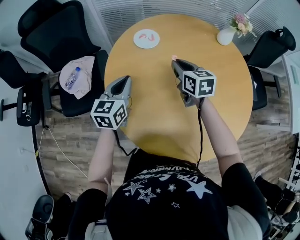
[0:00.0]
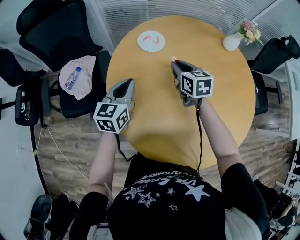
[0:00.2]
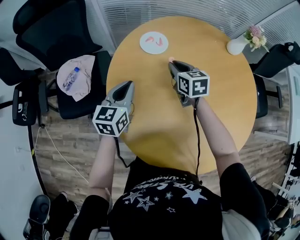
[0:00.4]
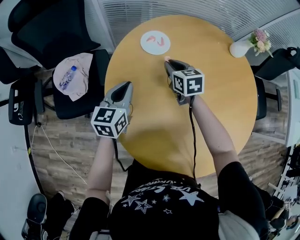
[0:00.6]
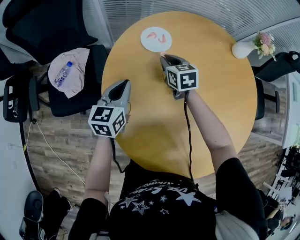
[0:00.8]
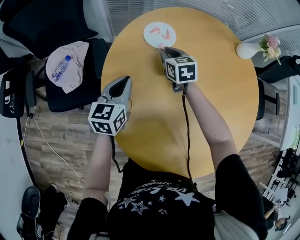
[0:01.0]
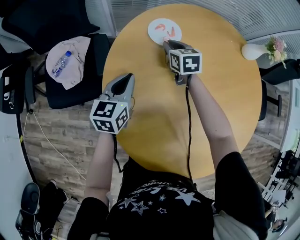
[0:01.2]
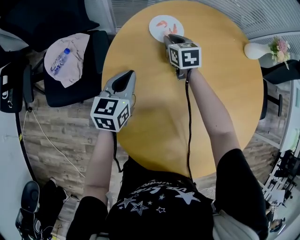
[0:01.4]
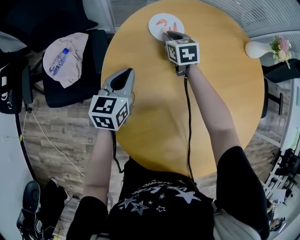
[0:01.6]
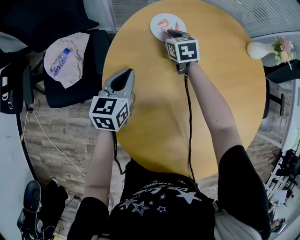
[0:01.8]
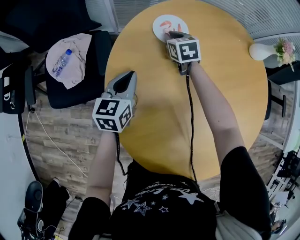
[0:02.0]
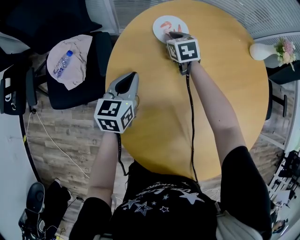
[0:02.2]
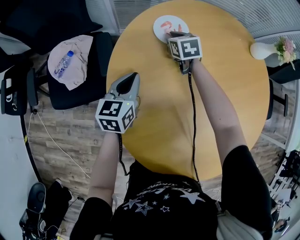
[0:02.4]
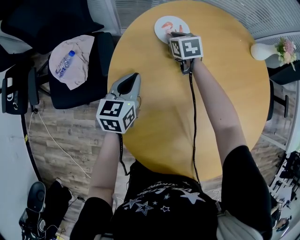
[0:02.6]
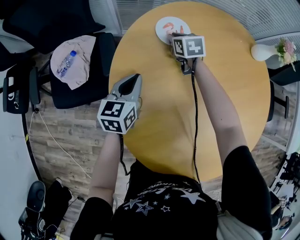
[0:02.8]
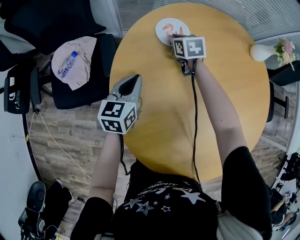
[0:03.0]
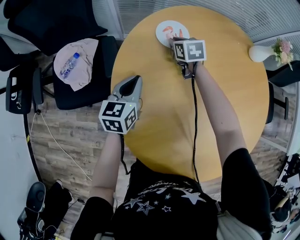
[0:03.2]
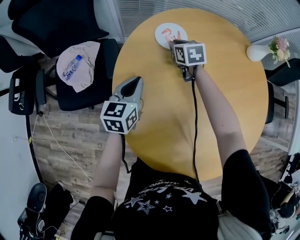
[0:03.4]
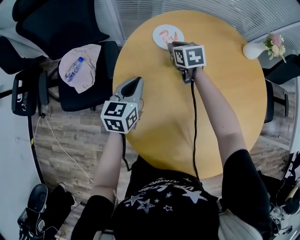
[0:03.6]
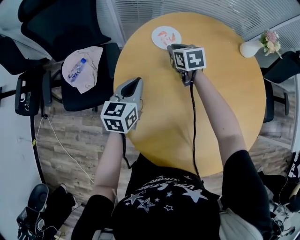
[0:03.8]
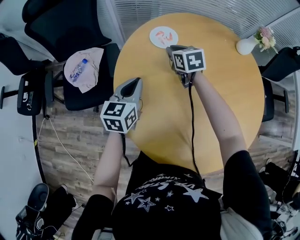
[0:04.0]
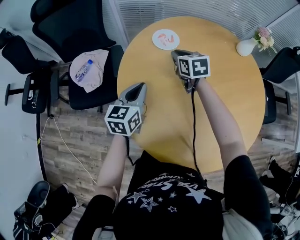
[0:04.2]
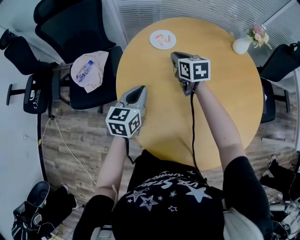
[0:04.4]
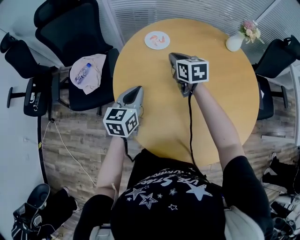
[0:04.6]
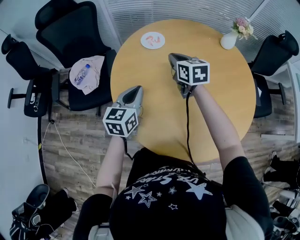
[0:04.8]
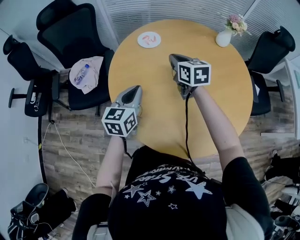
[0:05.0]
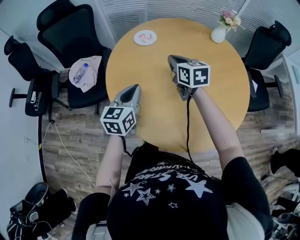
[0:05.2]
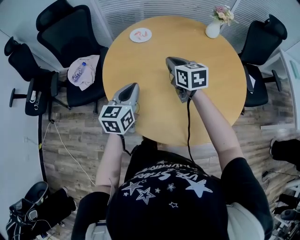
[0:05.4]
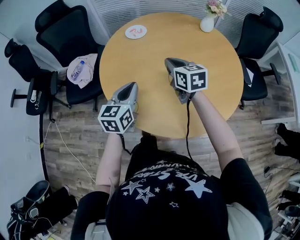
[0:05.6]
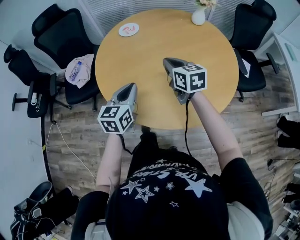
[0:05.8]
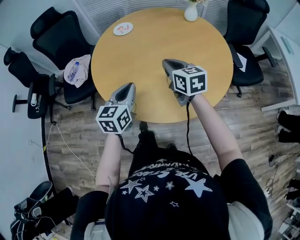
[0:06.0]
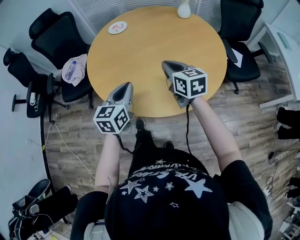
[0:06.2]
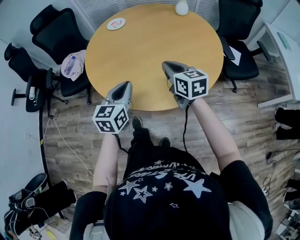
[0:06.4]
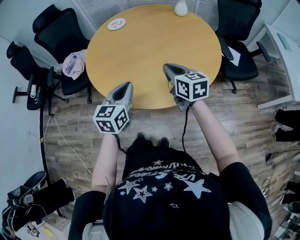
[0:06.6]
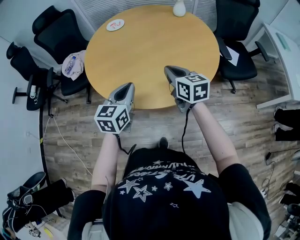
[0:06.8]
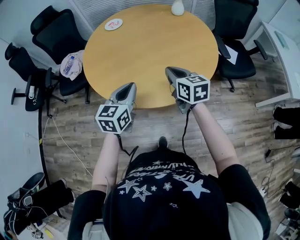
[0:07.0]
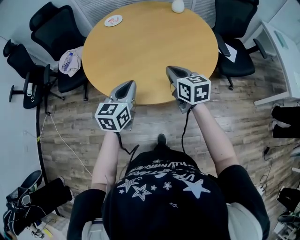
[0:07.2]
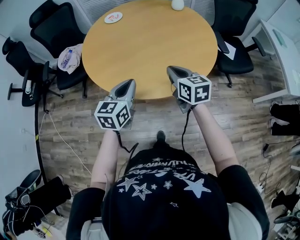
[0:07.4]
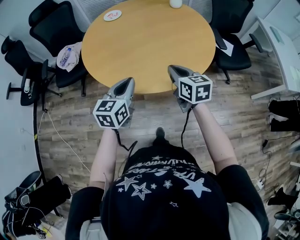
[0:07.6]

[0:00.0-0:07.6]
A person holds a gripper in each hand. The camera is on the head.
0:00.0 to 0:01.6: The right gripper is displaced forward, downward and to the left by roughly 30 cm; the left gripper moves downward and forward, approximately 15 cm.
0:01.6 to 0:03.0: The grippers move only a little.
0:03.0 to 0:04.6: The two grippers go roughly 25 cm backward and upward.
0:04.6 to 0:06.0: The grippers both shift backward and to the right by roughly 30 cm.
0:06.0 to 0:07.6: The grippers both shift backward and to the right by roughly 15 cm.

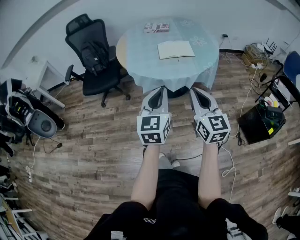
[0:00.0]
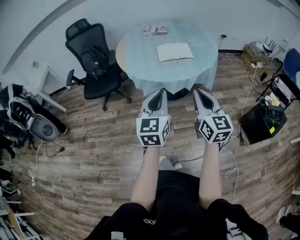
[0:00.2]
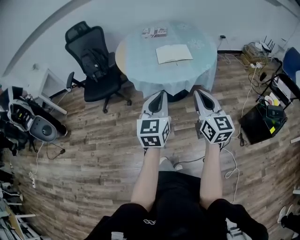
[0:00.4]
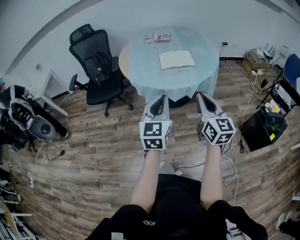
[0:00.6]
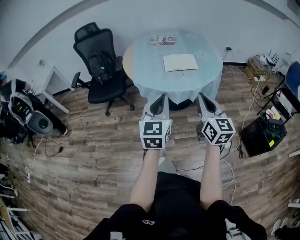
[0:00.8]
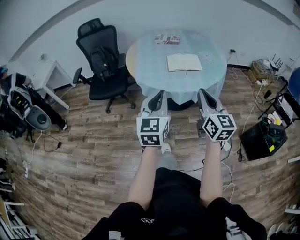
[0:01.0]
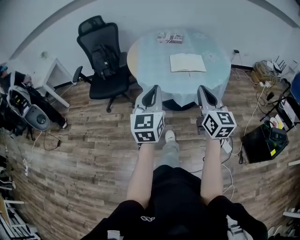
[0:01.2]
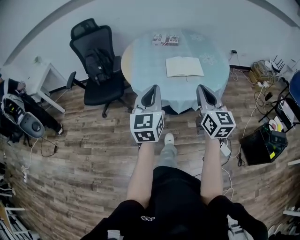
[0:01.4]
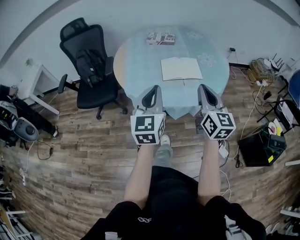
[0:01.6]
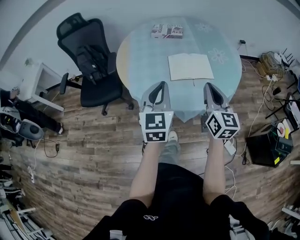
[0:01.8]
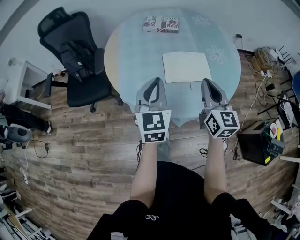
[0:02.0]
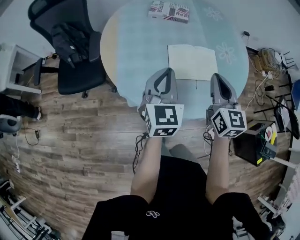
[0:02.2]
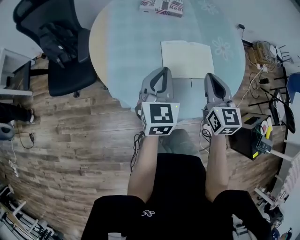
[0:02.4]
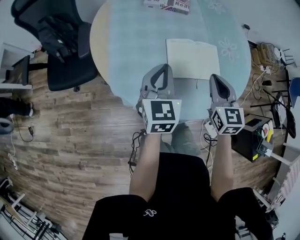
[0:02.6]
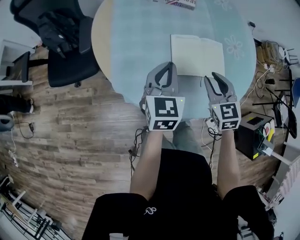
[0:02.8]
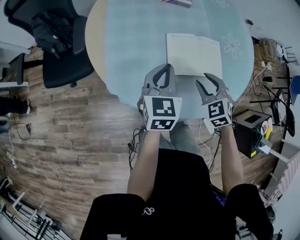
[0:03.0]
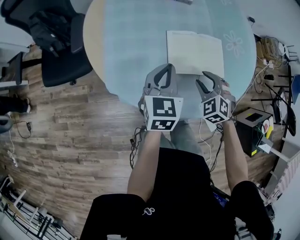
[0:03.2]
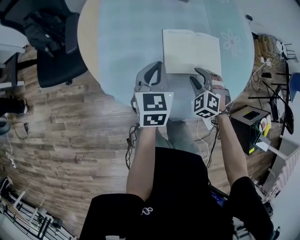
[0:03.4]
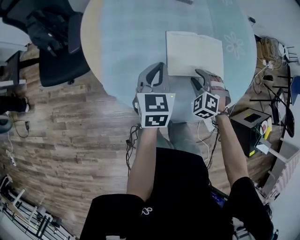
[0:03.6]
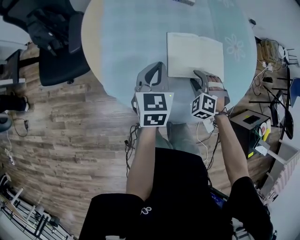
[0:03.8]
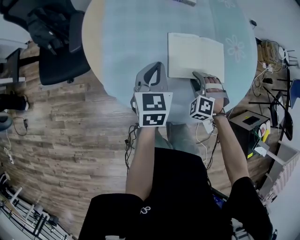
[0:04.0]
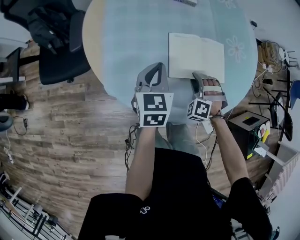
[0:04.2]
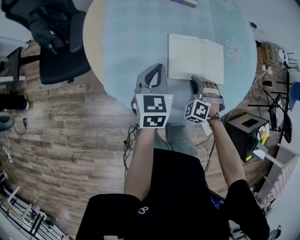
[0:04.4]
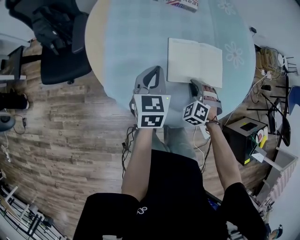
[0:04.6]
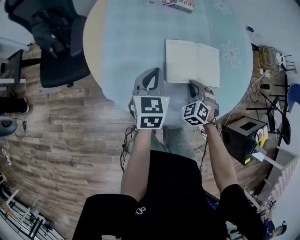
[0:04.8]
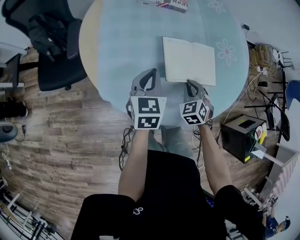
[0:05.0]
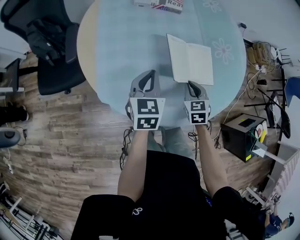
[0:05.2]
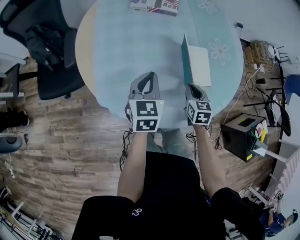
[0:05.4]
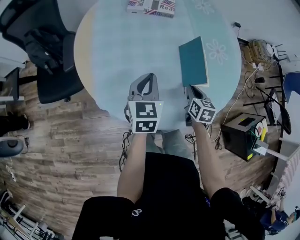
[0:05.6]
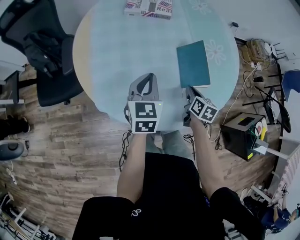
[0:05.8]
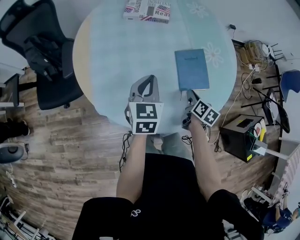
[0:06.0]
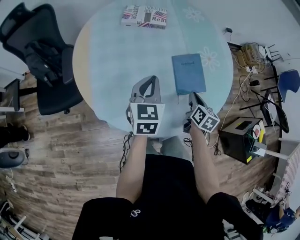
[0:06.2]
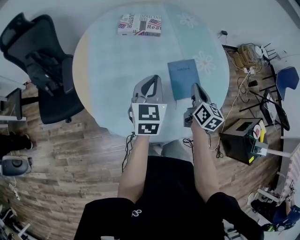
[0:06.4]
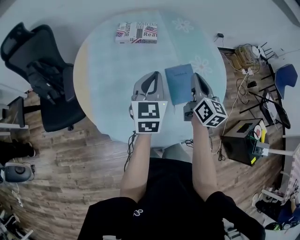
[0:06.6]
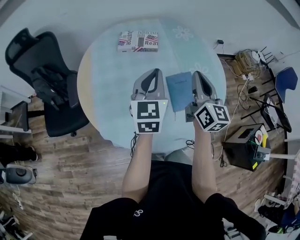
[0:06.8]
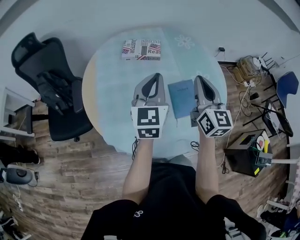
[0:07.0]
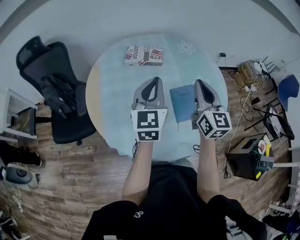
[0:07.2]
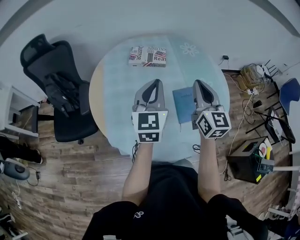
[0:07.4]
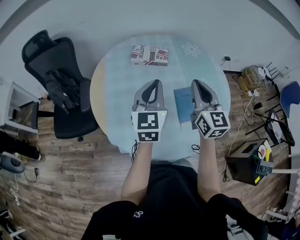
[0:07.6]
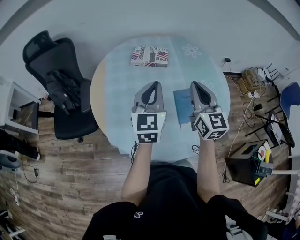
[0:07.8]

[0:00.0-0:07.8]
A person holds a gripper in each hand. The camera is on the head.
0:00.0 to 0:01.6: Both grippers travel together forward, about 25 cm.
0:01.6 to 0:03.2: The grippers both shift forward and downward by some 40 cm. The left gripper turns by some 20 degrees. The right gripper angles its fingers downward, by some 50 degrees, and opens up.
0:03.2 to 0:04.6: The right gripper goes some 5 cm downward, and closes its fingers; the left gripper changes place by some 5 cm.
0:04.6 to 0:06.2: The two grippers go approximately 10 cm to the right and upward. The right gripper rotates around the line of its fingers by roughly 100 degrees, clockwise from behind.
0:06.2 to 0:07.8: The left gripper travels upward by approximately 15 cm. Meanwhile the right gripper moves upward, approximately 30 cm, and angles its fingers upward, by approximately 30 degrees.

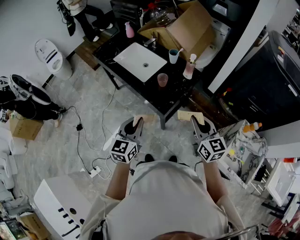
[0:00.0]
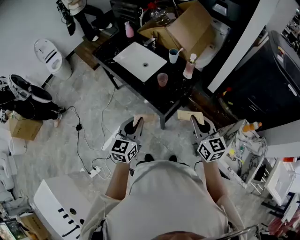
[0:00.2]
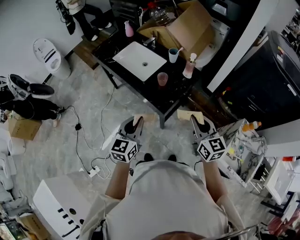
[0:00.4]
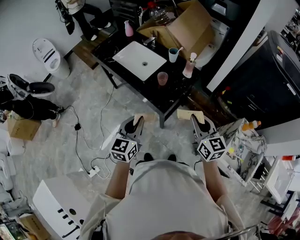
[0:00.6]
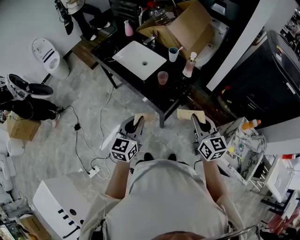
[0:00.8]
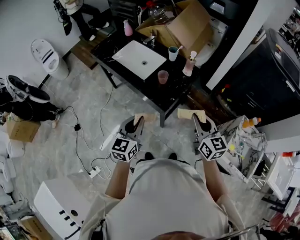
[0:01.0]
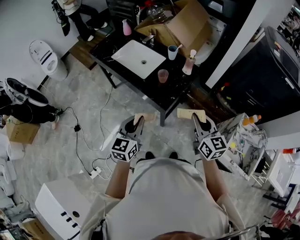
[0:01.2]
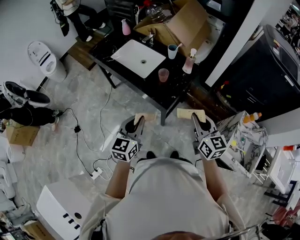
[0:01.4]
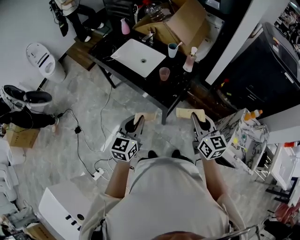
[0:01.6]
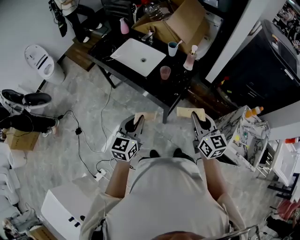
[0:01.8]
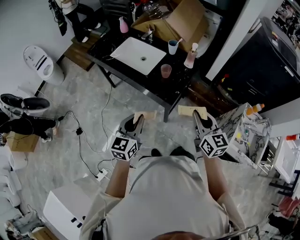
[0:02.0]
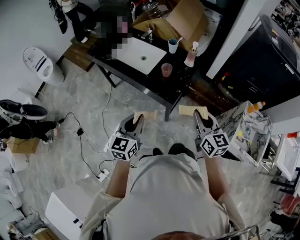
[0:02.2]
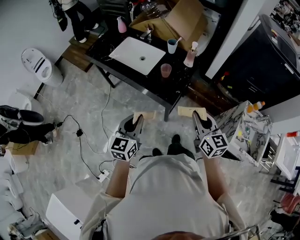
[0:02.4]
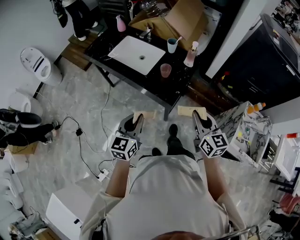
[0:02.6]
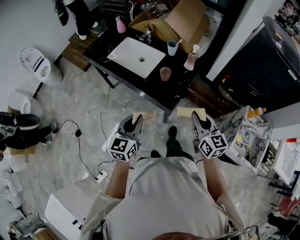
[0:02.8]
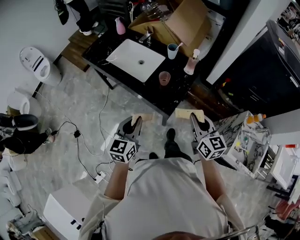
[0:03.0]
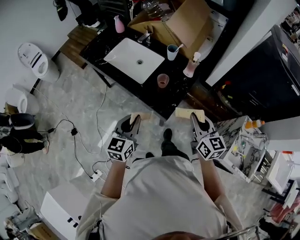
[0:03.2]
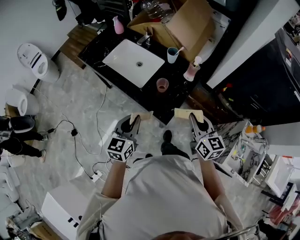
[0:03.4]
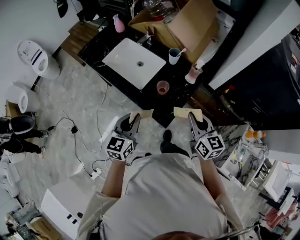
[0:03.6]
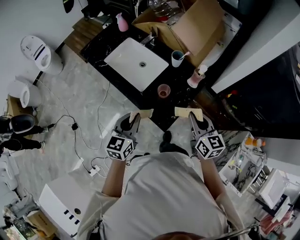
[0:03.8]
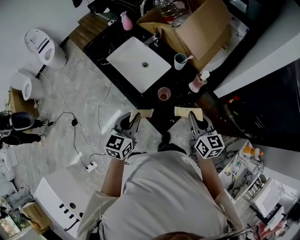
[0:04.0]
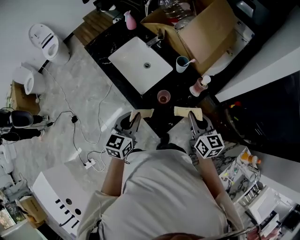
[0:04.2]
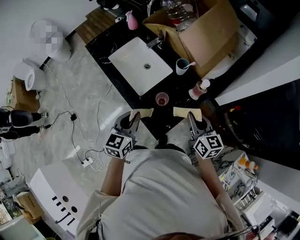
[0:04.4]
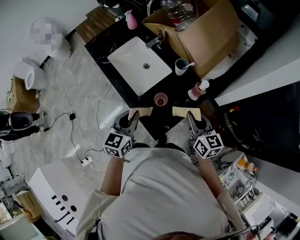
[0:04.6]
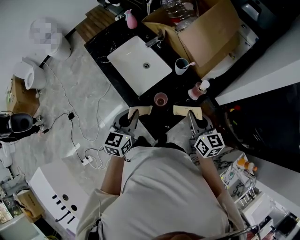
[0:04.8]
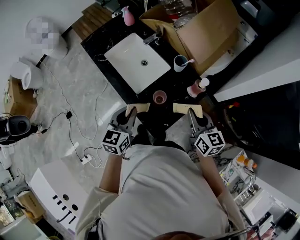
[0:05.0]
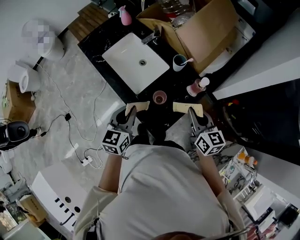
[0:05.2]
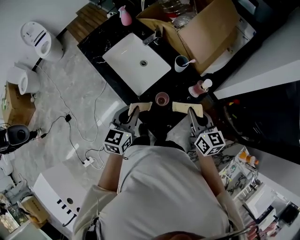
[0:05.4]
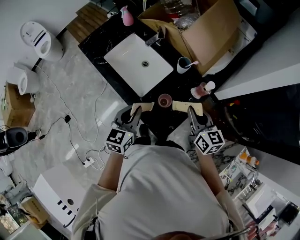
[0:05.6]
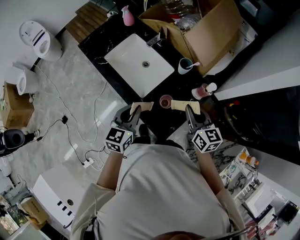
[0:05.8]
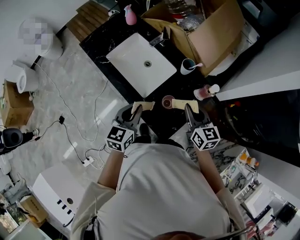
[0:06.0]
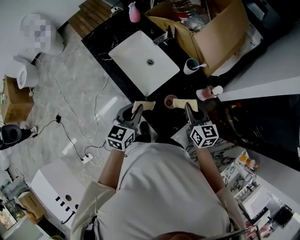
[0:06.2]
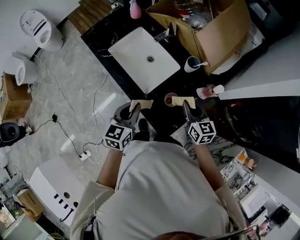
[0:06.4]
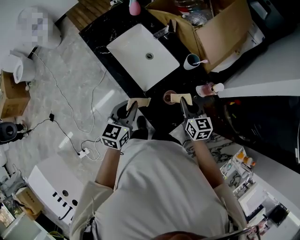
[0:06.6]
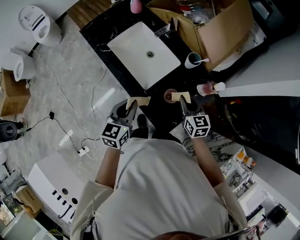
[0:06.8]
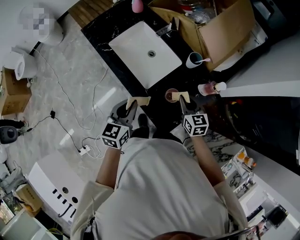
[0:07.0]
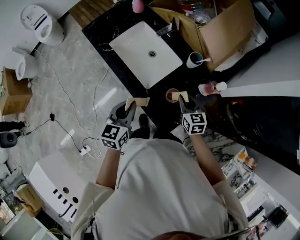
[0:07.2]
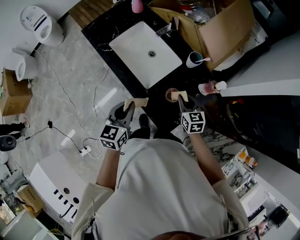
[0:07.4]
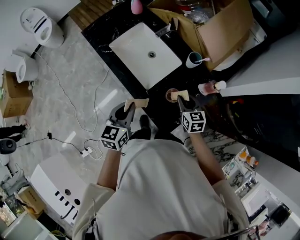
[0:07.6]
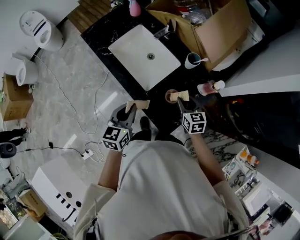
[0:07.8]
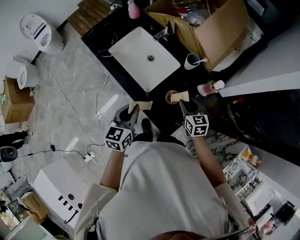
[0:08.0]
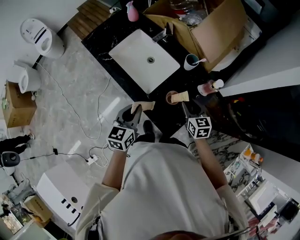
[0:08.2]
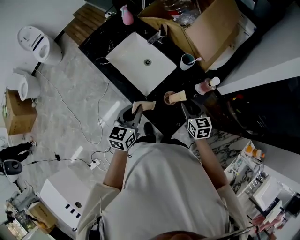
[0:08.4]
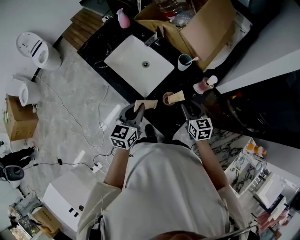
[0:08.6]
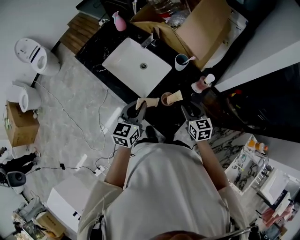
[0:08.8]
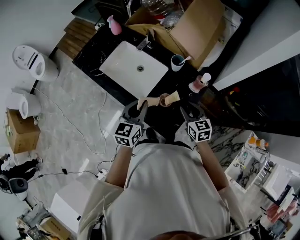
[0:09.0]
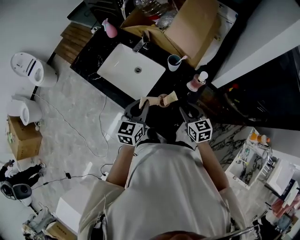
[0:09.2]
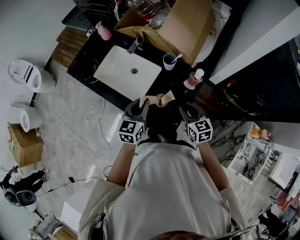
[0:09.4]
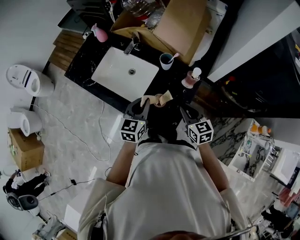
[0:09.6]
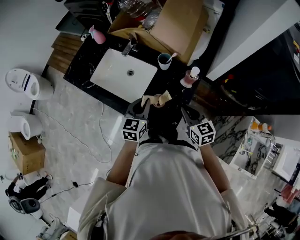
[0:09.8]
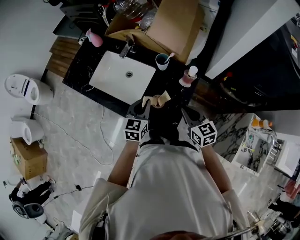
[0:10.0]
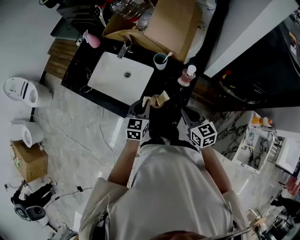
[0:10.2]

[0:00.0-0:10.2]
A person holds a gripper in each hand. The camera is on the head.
0:00.0 to 0:01.4: The grippers make only small movements.
0:01.4 to 0:03.0: The two grippers go approximately 10 cm forward.
0:03.0 to 0:04.4: Both grippers travel together forward, approximately 20 cm.
0:04.4 to 0:05.8: The two grippers go roughly 5 cm forward.
0:05.8 to 0:07.2: The left gripper goes roughly 5 cm to the left. Meanwhile the right gripper heads downward and to the left, covering some 15 cm.
0:07.2 to 0:08.8: Both grippers move to the right, roughly 5 cm. The right gripper opens its fingers.
0:08.8 to 0:10.2: The left gripper moves to the right and downward, about 10 cm; the right gripper shifts by about 5 cm, and closes up.
